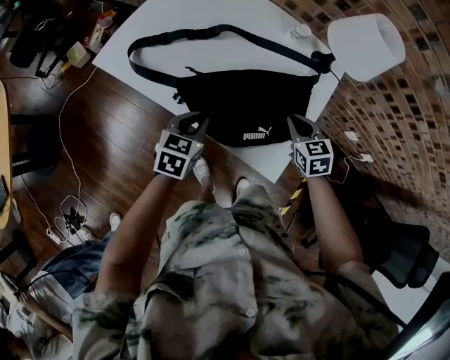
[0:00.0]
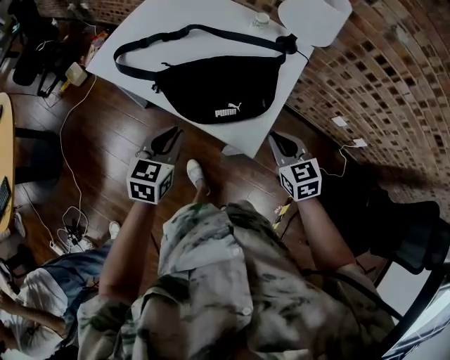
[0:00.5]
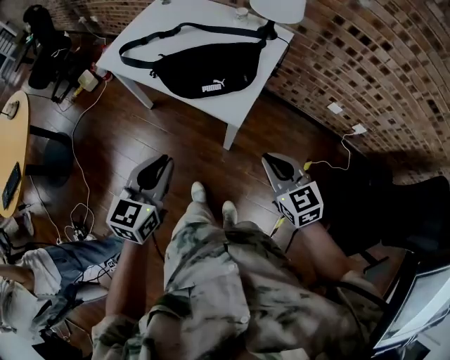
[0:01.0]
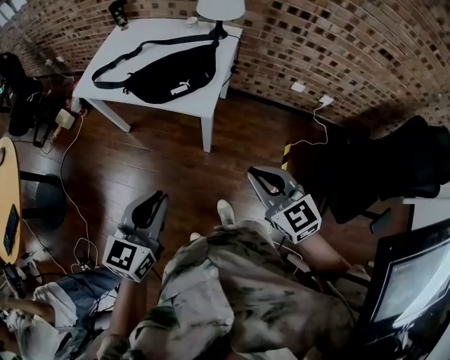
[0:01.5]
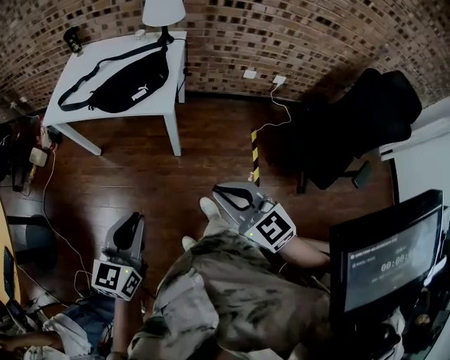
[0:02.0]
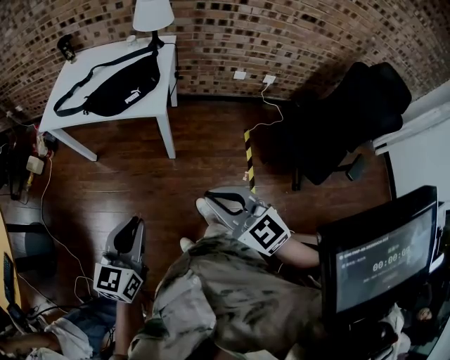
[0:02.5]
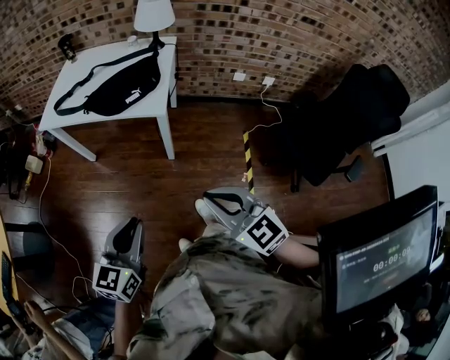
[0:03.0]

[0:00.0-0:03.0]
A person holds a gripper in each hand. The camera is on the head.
0.0 to 1.5 s: The two grippers travel together, backward, roughly 50 cm. Both grippers travel together upward, approximately 25 cm. The left gripper swivels approximately 20 degrees; the right gripper swivels roughly 20 degrees.
1.5 to 3.0 s: Both grippers move backward, approximately 15 cm.

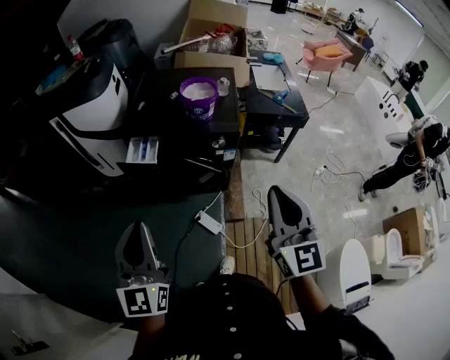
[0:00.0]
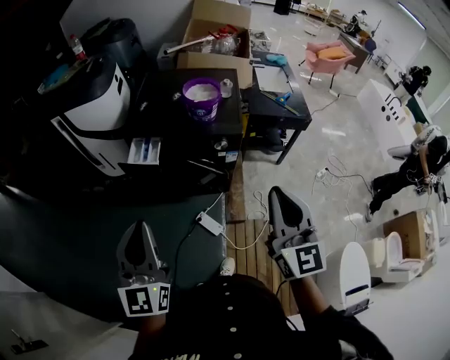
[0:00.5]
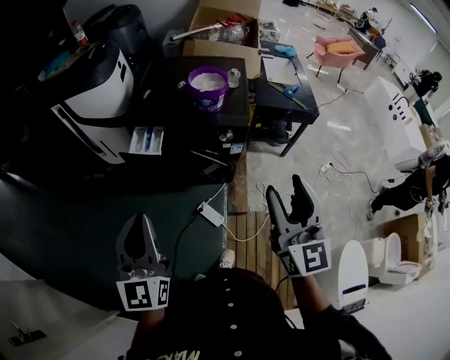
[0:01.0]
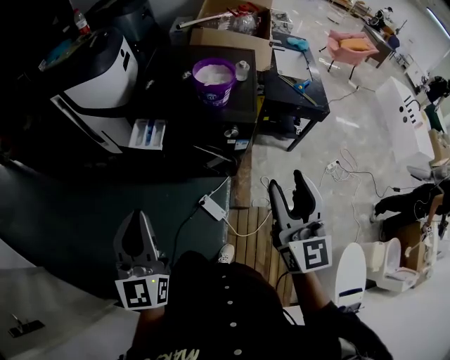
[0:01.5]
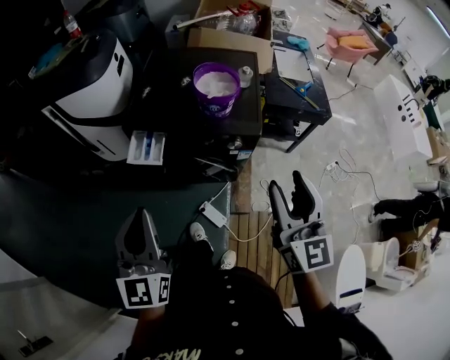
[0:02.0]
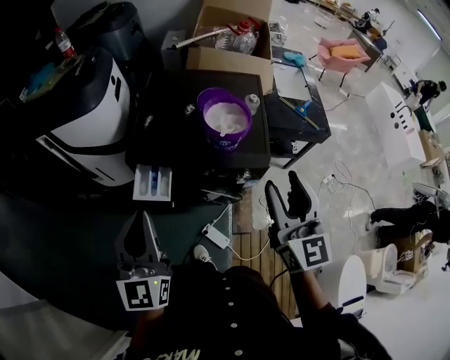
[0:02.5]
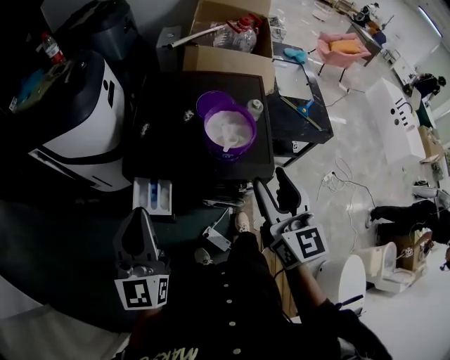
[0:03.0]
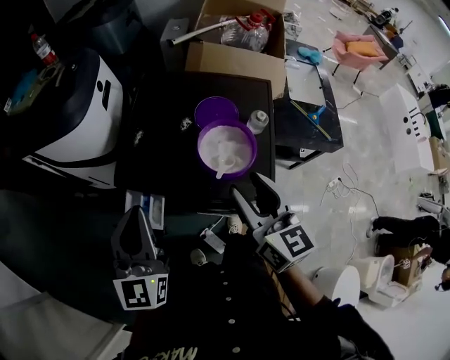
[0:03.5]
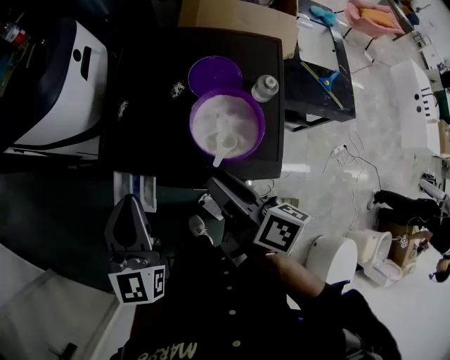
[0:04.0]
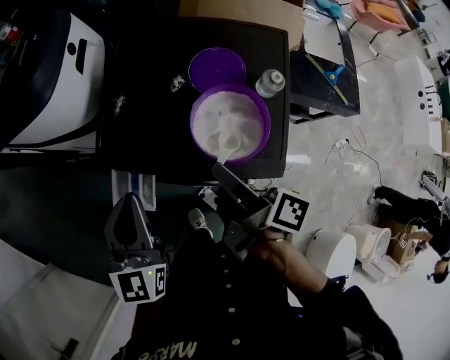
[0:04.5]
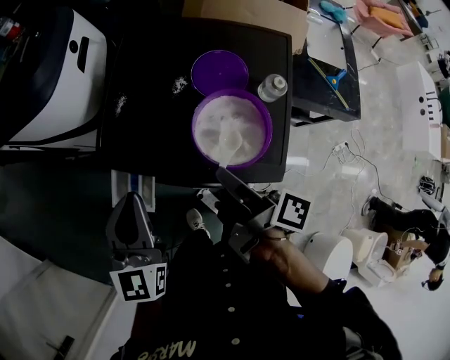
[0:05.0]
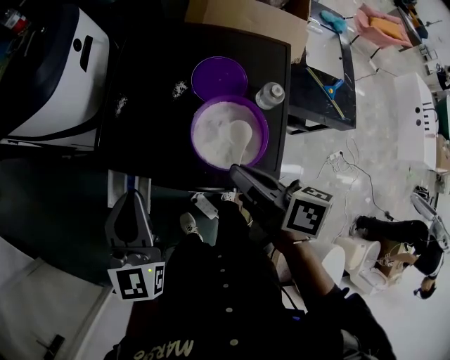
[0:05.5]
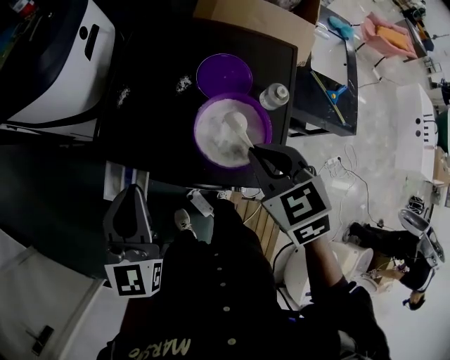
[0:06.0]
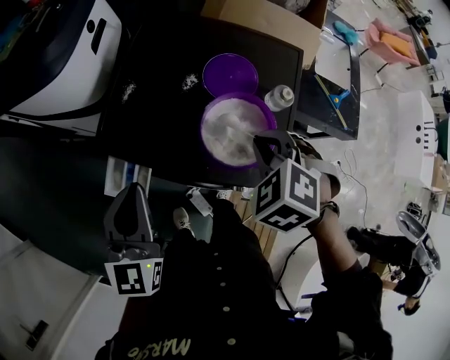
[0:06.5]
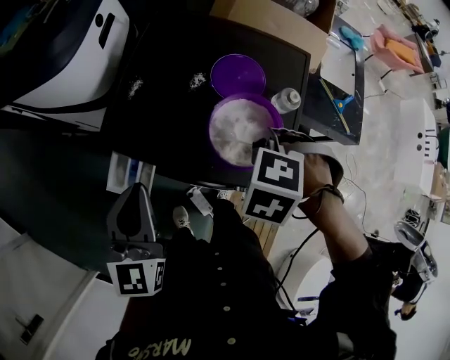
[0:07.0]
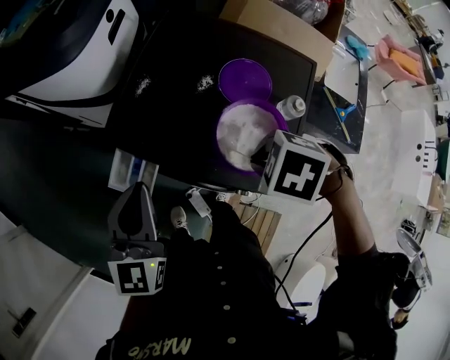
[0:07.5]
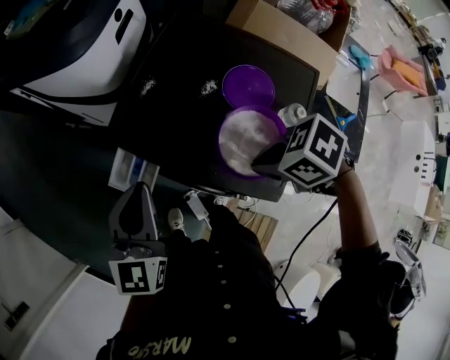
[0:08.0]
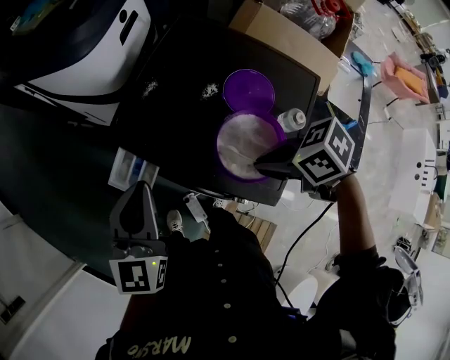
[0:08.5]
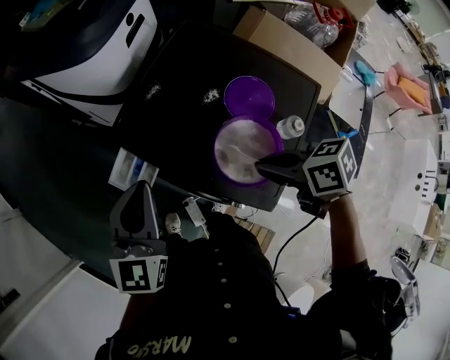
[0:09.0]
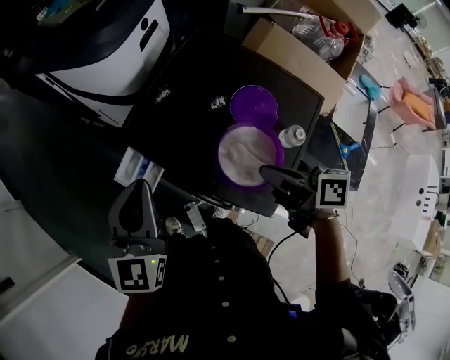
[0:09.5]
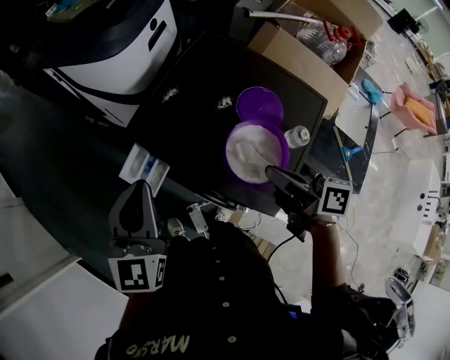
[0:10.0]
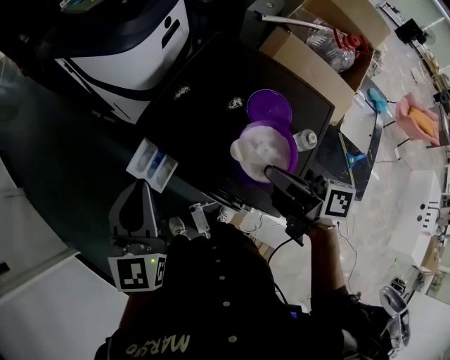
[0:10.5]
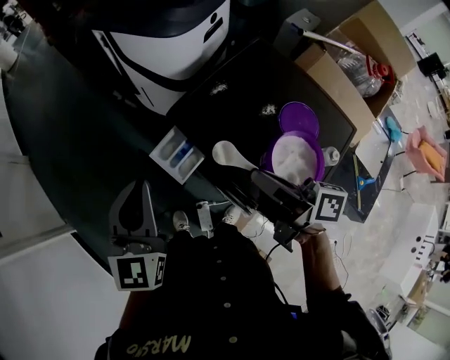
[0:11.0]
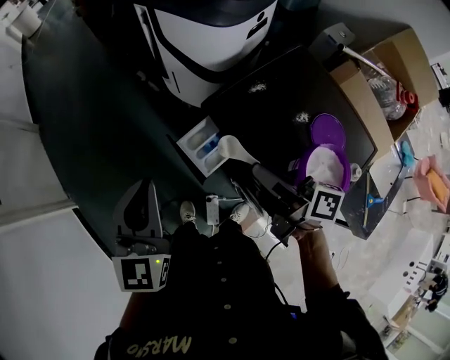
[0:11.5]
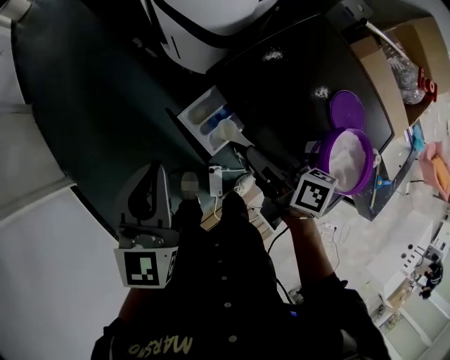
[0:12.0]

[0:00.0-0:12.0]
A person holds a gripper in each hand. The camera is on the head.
0.0 to 2.0 s: Both grippers travel together forward, some 15 cm. The right gripper opens its fingers.
2.0 to 4.0 s: The right gripper moves forward and downward, about 30 cm, and rotates around the line of its fingers by some 60 degrees, clockwise from behind. Meanwhile the left gripper travels forward by about 30 cm.
4.0 to 6.0 s: The right gripper shifts some 5 cm to the right, twists roughly 70 degrees counterclockwise, seen from behind, and closes.
6.0 to 8.0 s: The right gripper turns by some 50 degrees.
8.0 to 10.0 s: The right gripper changes place by approximately 5 cm, and angles its fingers upward, by roughly 40 degrees. The left gripper changes place by approximately 5 cm.
10.0 to 12.0 s: The left gripper shifts approximately 15 cm to the left, while the right gripper goes some 25 cm to the left and forward.

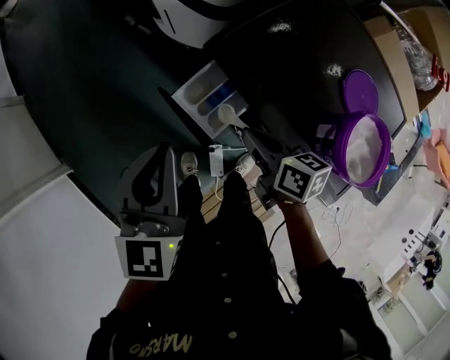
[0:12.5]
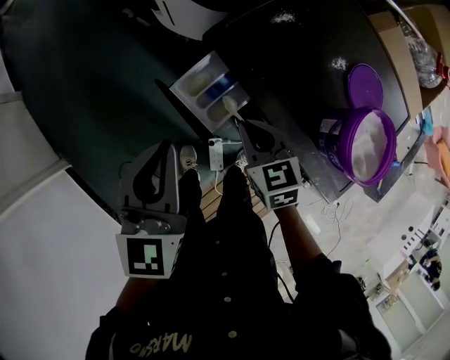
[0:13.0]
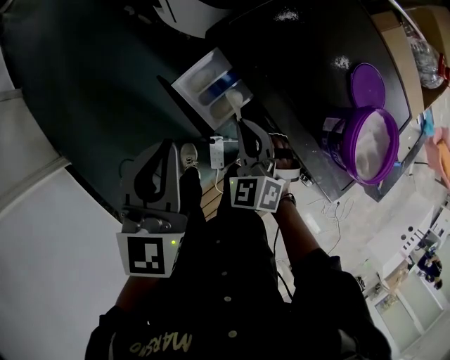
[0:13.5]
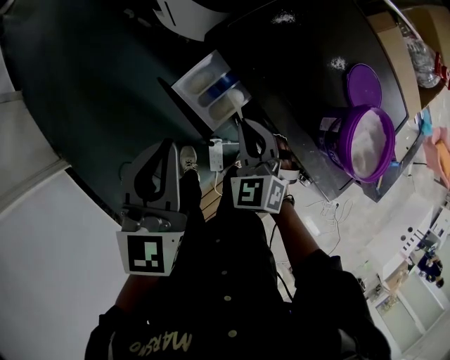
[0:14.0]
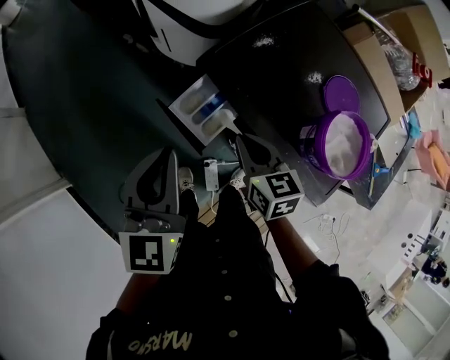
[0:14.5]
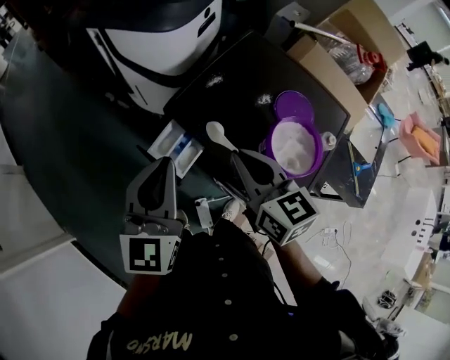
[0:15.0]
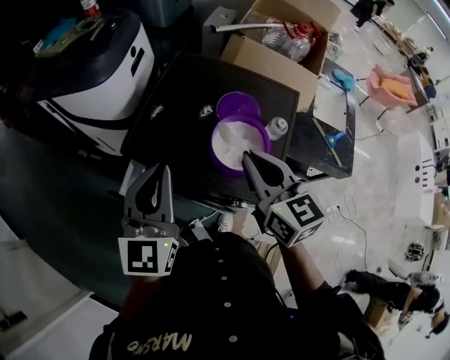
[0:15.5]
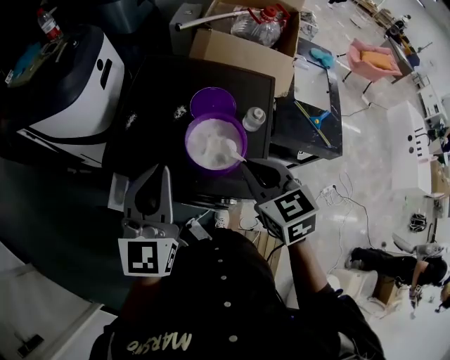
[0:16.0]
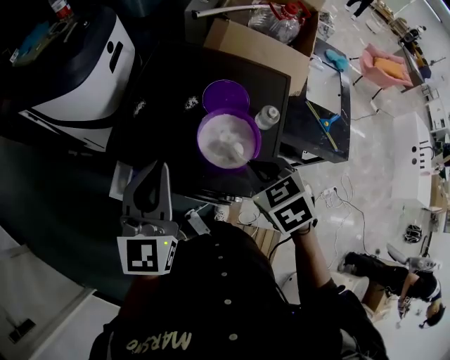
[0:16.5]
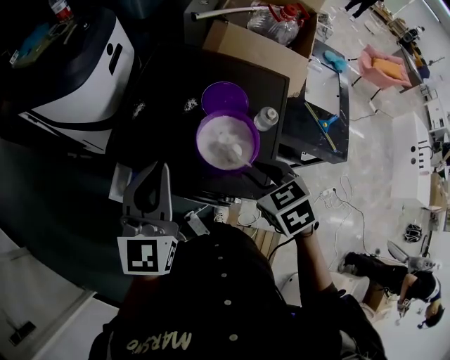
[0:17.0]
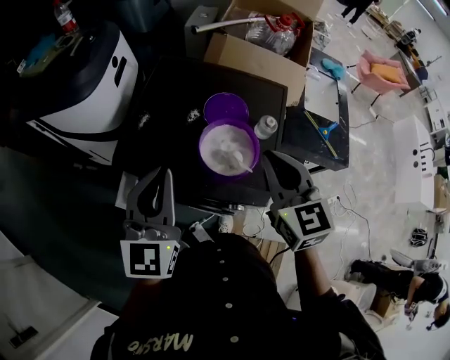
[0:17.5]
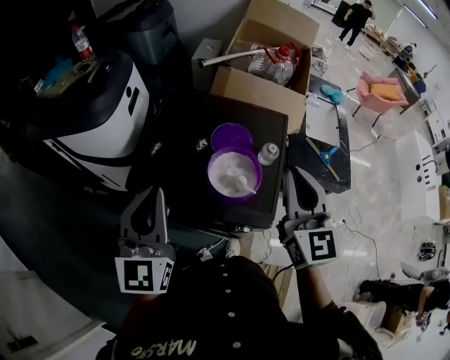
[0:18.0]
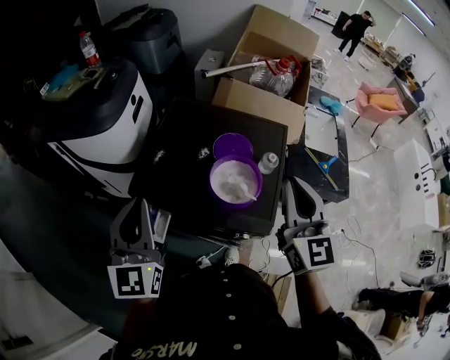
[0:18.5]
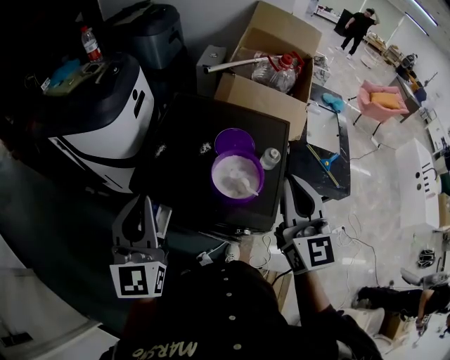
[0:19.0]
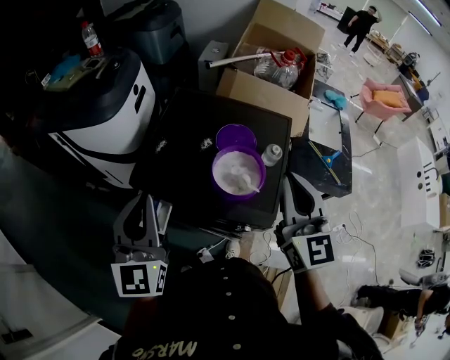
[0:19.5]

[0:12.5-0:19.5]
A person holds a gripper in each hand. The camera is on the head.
12.5 to 14.5 s: The right gripper swivels roughly 30 degrees.
14.5 to 16.0 s: The right gripper moves some 30 cm, and changes its angle by about 30 degrees, while the left gripper moves about 25 cm, and turns by approximately 40 degrees.
16.0 to 17.5 s: The right gripper shifts approximately 5 cm upward, and opens and closes again.
17.5 to 19.5 s: The right gripper is displaced upward by about 5 cm. Meanwhile the left gripper travels to the left by roughly 5 cm.

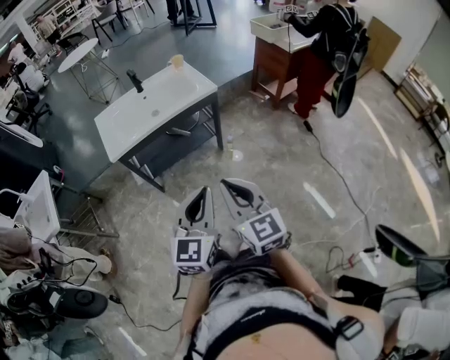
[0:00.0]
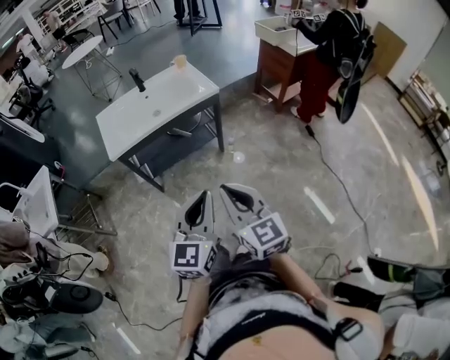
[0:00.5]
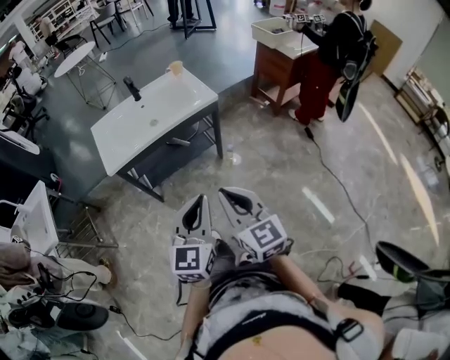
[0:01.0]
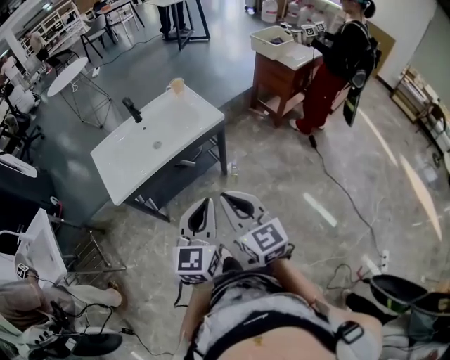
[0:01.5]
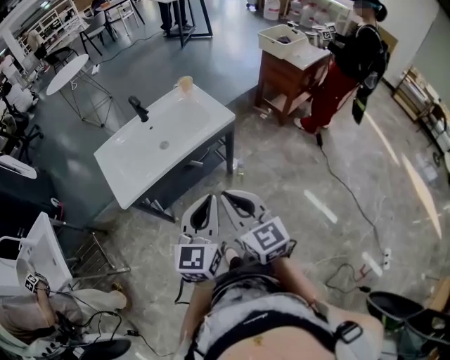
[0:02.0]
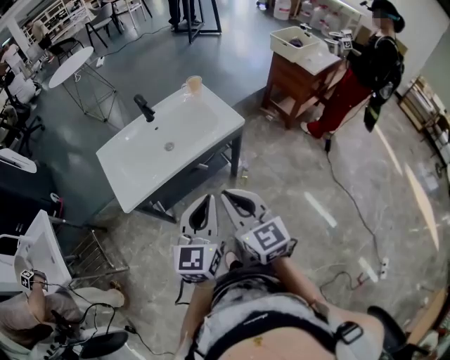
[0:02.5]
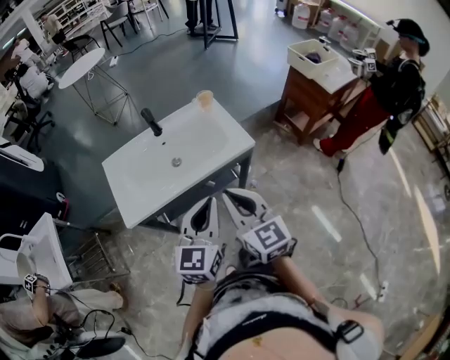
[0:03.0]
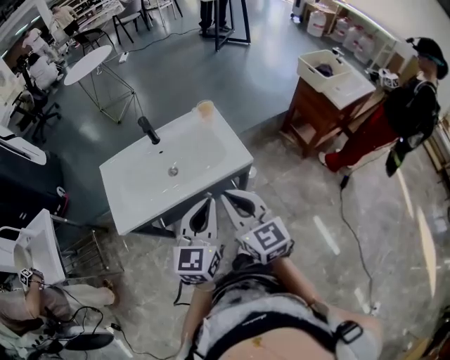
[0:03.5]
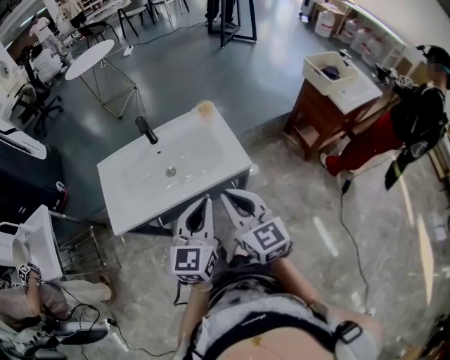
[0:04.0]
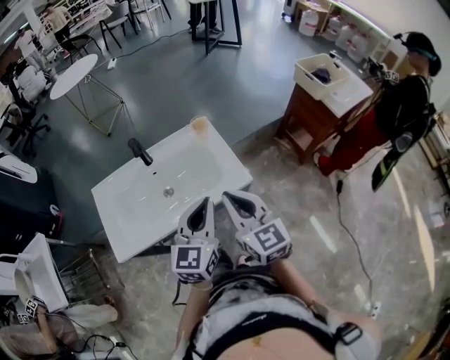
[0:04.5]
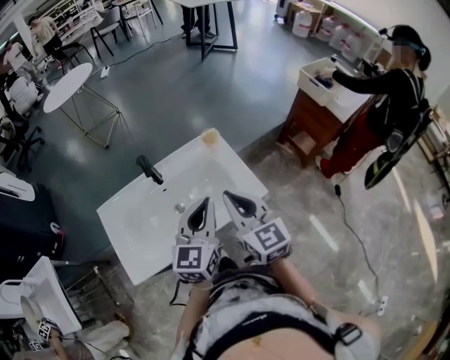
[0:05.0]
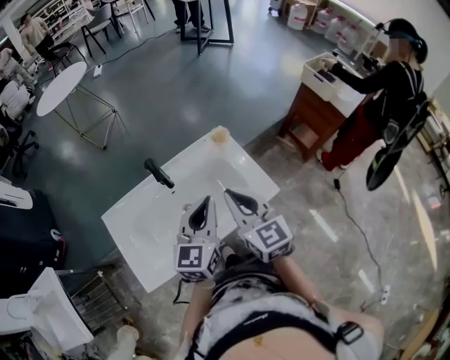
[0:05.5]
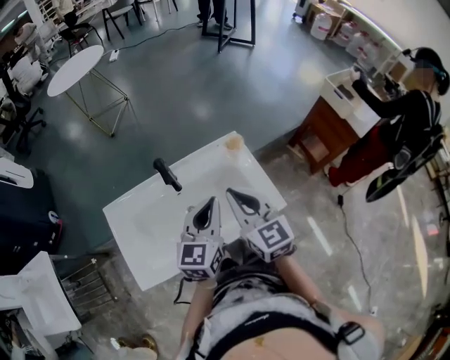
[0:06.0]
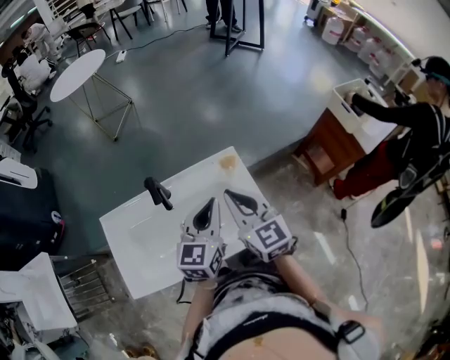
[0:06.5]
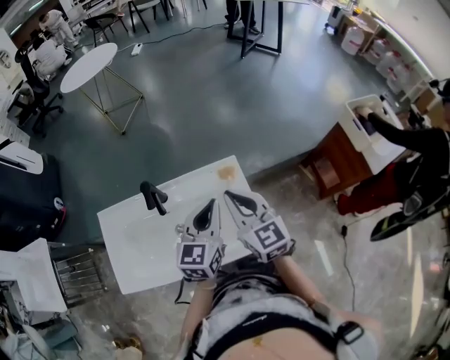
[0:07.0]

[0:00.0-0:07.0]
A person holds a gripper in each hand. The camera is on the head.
0.0 to 2.0 s: The left gripper moves forward, roughly 20 cm. The right gripper moves forward and to the left, roughly 20 cm.
2.0 to 3.5 s: The grippers both shift forward by some 20 cm.
3.5 to 5.0 s: Both grippers travel together forward, about 20 cm.
5.0 to 7.0 s: The two grippers go some 15 cm forward.
